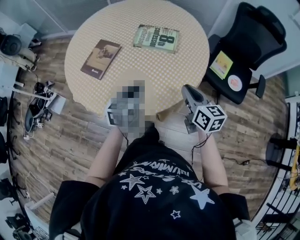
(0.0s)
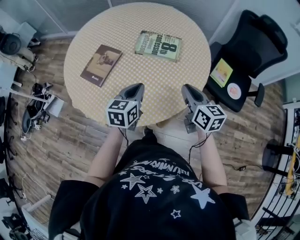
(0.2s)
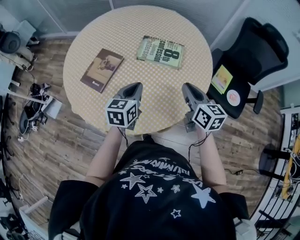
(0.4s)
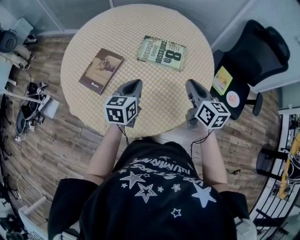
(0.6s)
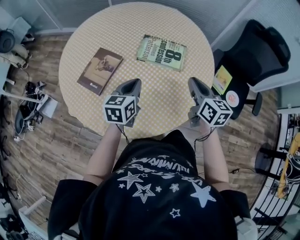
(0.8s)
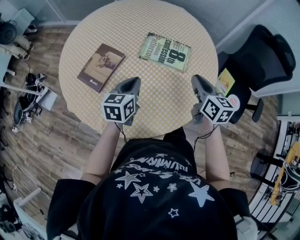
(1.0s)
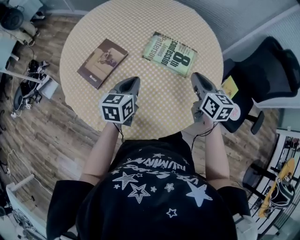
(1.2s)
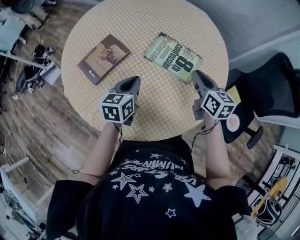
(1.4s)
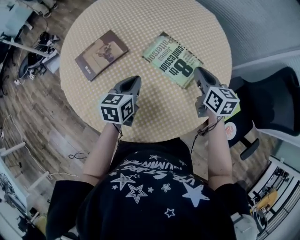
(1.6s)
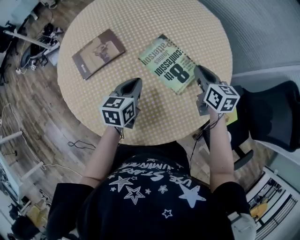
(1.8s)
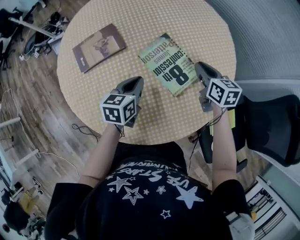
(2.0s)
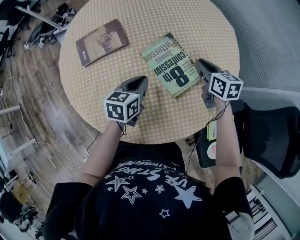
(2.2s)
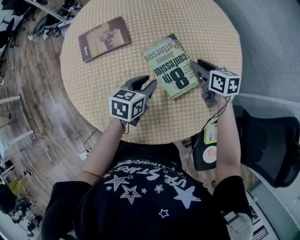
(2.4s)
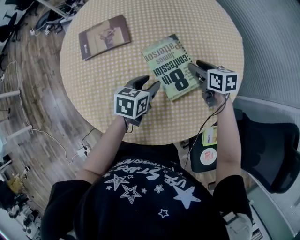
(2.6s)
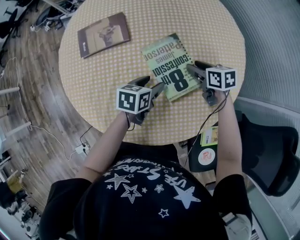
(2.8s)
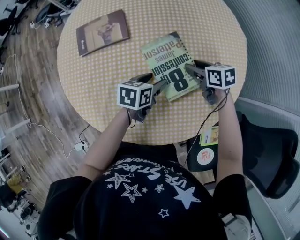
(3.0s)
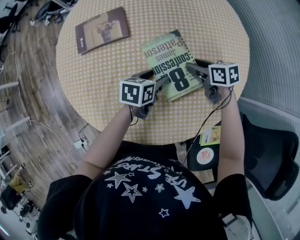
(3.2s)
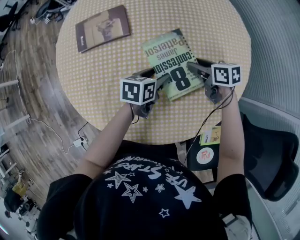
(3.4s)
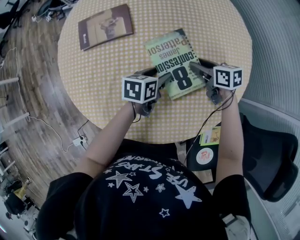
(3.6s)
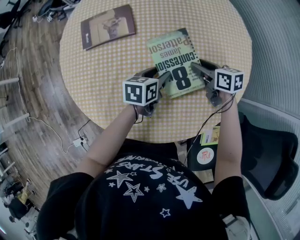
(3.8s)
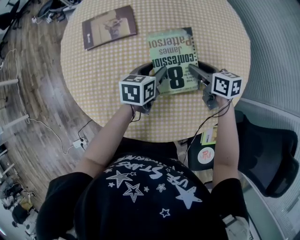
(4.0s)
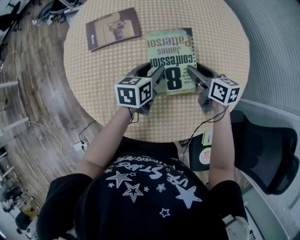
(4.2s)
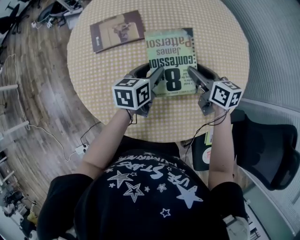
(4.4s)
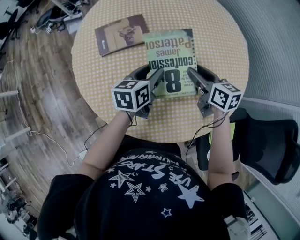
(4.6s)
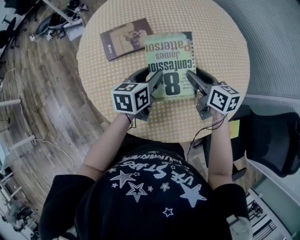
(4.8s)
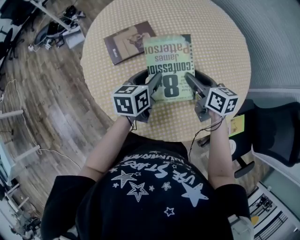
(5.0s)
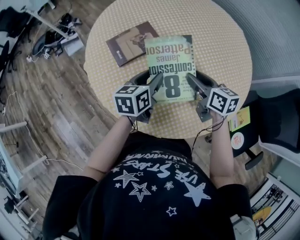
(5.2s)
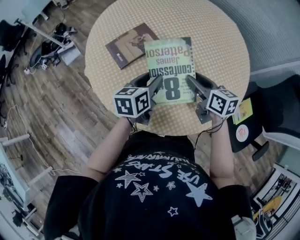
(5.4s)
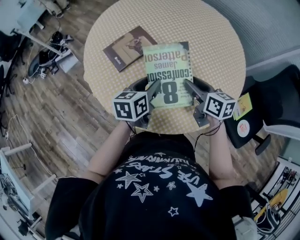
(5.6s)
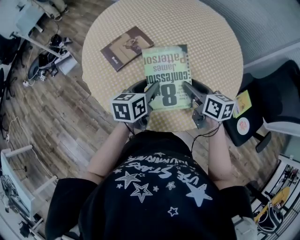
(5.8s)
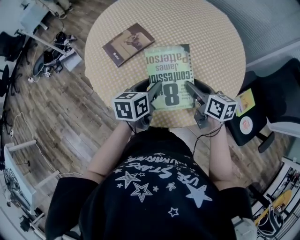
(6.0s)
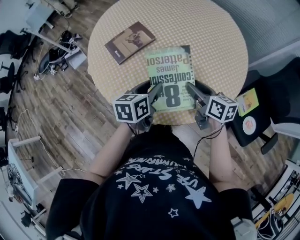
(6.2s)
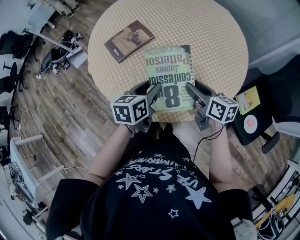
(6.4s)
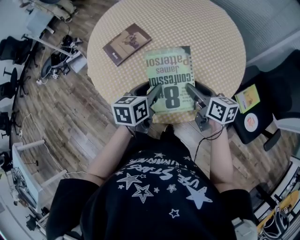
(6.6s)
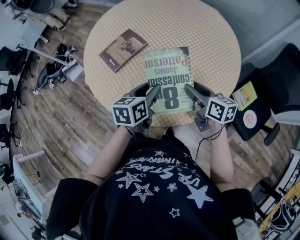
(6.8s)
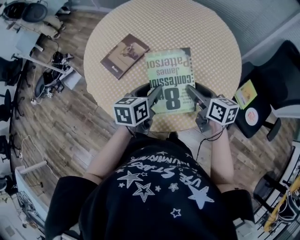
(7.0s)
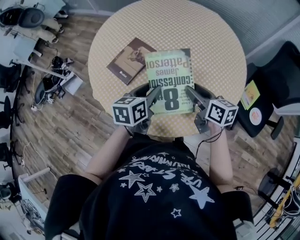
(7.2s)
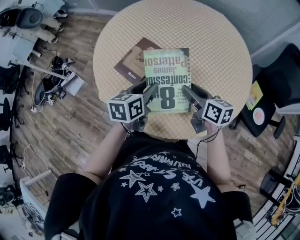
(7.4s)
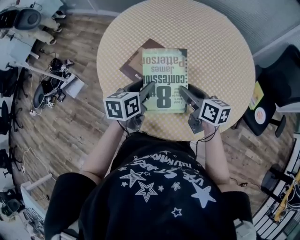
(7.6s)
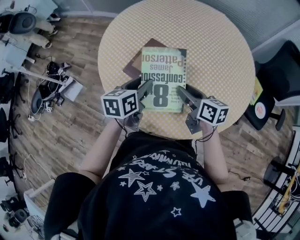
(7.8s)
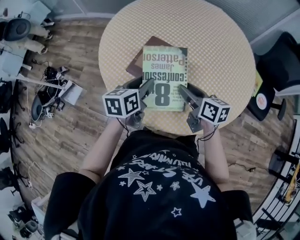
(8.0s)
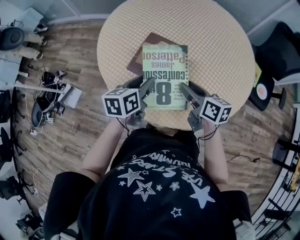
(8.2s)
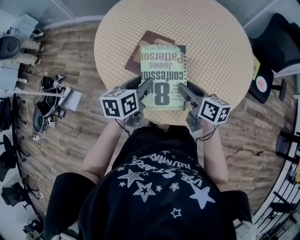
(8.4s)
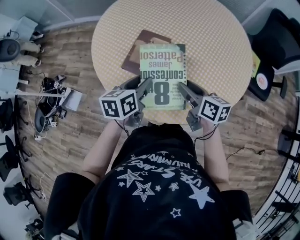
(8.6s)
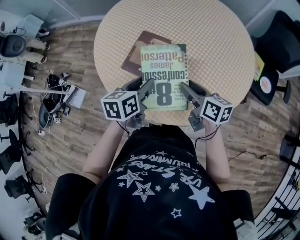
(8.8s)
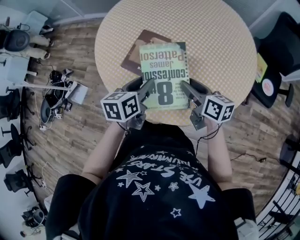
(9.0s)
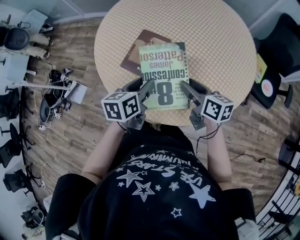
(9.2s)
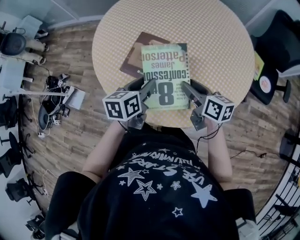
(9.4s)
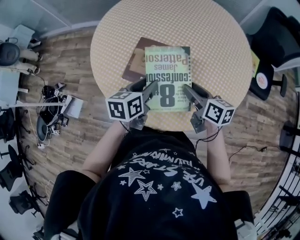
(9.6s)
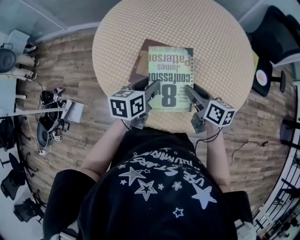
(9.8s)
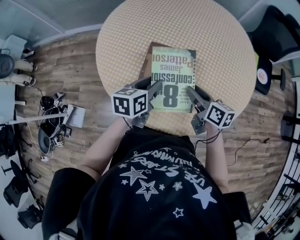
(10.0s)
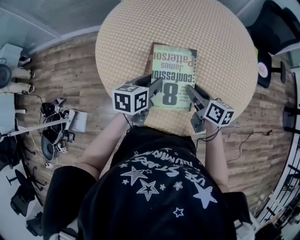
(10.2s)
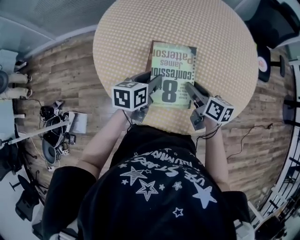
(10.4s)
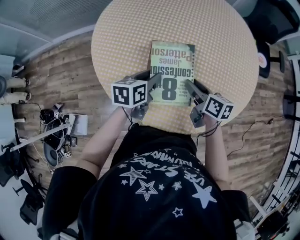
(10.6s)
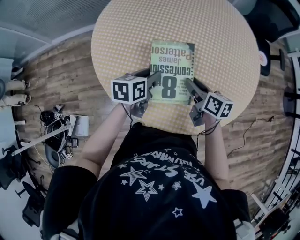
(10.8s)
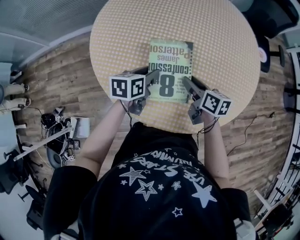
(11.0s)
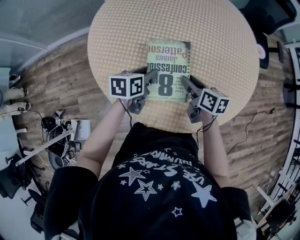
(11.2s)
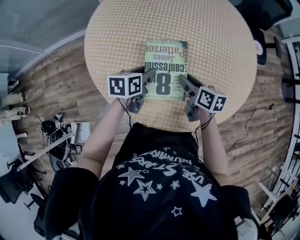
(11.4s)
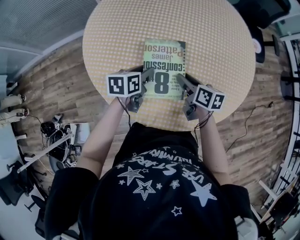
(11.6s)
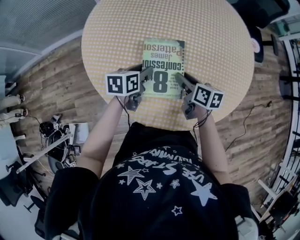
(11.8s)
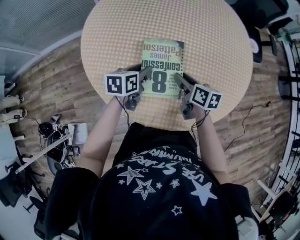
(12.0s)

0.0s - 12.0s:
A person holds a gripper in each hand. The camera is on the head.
0.0s - 1.6s: The left gripper moves forward, some 20 cm, and rotates roughly 30 degrees. Meanwhile the right gripper moves forward, about 30 cm, and changes its angle by about 20 degrees.
1.6s - 3.0s: The left gripper ends up about 15 cm from where it was, rotates approximately 20 degrees, and opens up; the right gripper travels downward by some 15 cm, rotates approximately 50 degrees, and opens.
3.0s - 4.4s: The left gripper goes approximately 10 cm to the left and upward, while the right gripper heads upward and to the left, covering about 10 cm.
4.4s - 6.0s: The right gripper goes some 20 cm backward and to the left, and turns by approximately 30 degrees, while the left gripper moves to the left and backward, approximately 15 cm, and changes its angle by about 20 degrees.
6.0s - 7.6s: The left gripper goes about 20 cm to the left and forward. The right gripper shifts approximately 15 cm to the left.
9.0s - 10.4s: The left gripper changes place by roughly 15 cm, and swivels about 30 degrees. The right gripper ends up some 15 cm from where it was, and swivels approximately 30 degrees.
10.4s - 12.0s: The left gripper goes roughly 5 cm downward and forward. The right gripper changes place by roughly 5 cm.

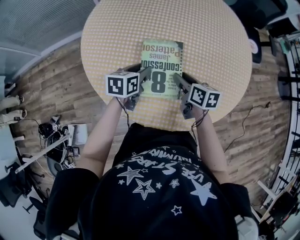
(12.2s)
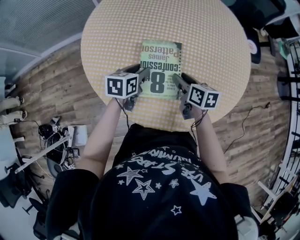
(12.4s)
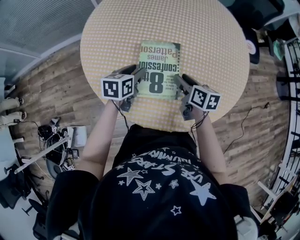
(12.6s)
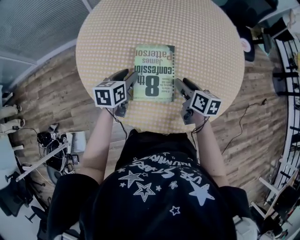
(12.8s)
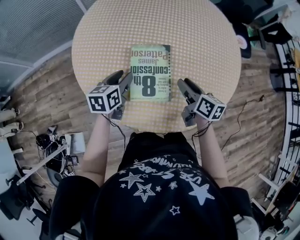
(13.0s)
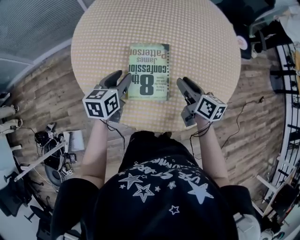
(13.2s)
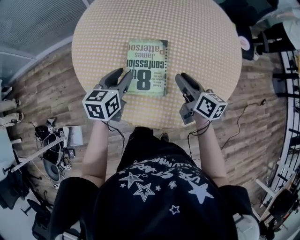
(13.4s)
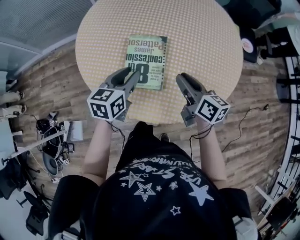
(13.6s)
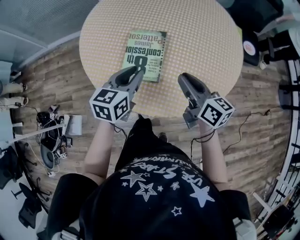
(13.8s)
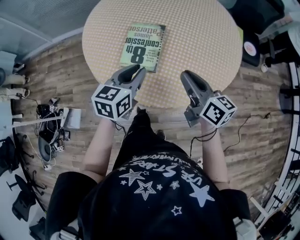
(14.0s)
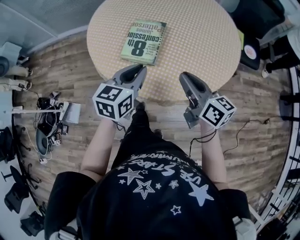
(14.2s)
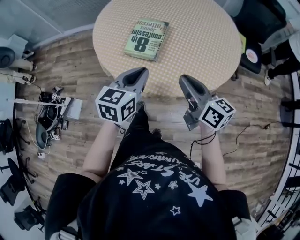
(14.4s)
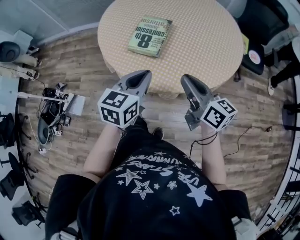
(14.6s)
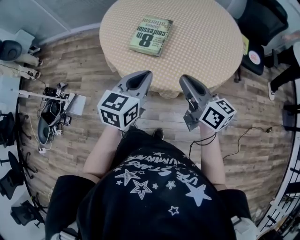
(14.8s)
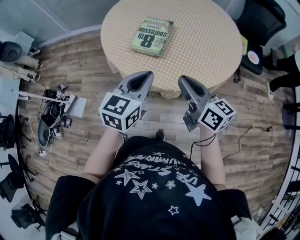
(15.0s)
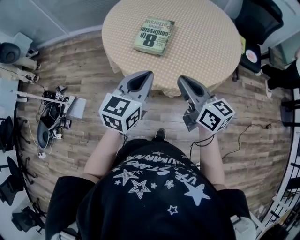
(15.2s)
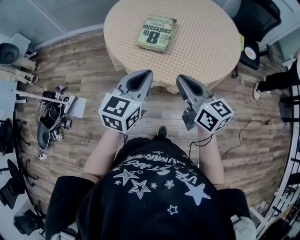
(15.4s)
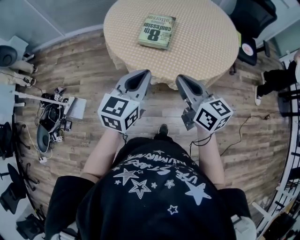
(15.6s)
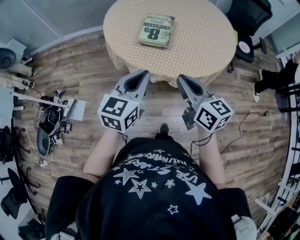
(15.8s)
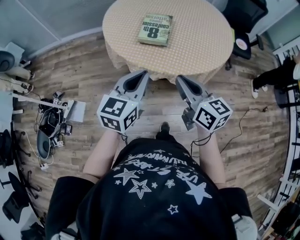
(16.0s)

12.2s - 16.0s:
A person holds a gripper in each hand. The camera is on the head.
12.2s - 13.4s: The right gripper shifts roughly 10 cm upward and to the right; the left gripper moves upward, approximately 10 cm.
13.4s - 14.8s: The right gripper goes roughly 25 cm backward and upward, swivels some 30 degrees, and closes. The left gripper is displaced backward and to the right by approximately 30 cm, and closes its fingers.
14.8s - 16.0s: Both grippers travel together to the left and backward, about 15 cm.

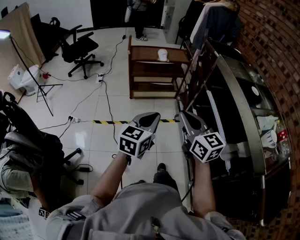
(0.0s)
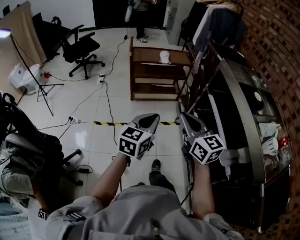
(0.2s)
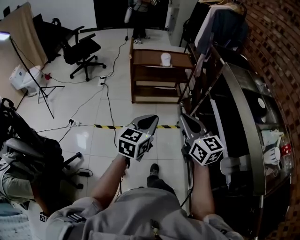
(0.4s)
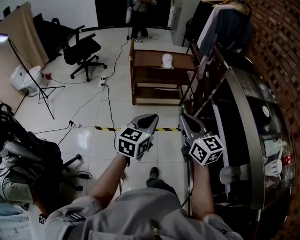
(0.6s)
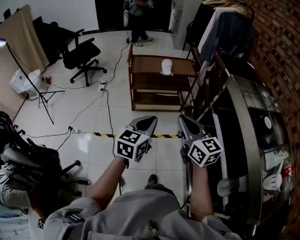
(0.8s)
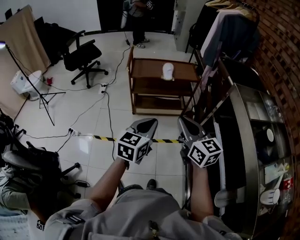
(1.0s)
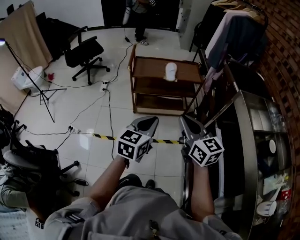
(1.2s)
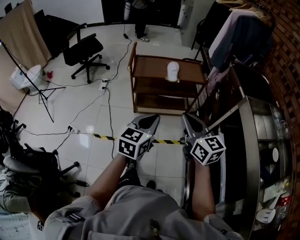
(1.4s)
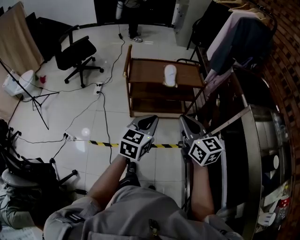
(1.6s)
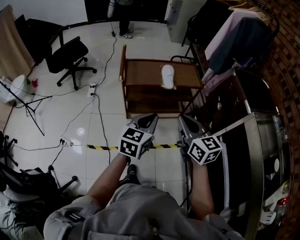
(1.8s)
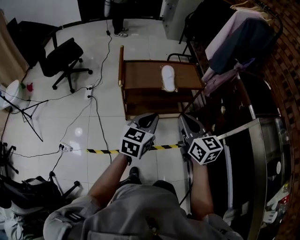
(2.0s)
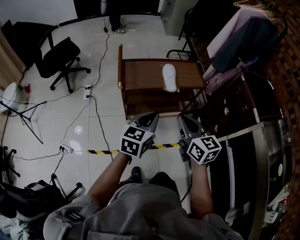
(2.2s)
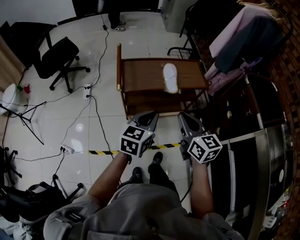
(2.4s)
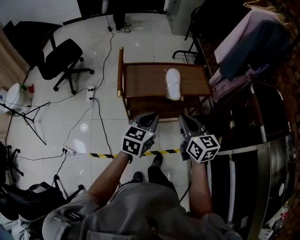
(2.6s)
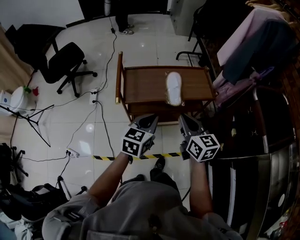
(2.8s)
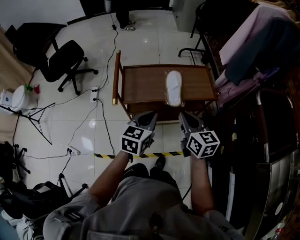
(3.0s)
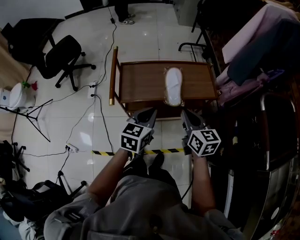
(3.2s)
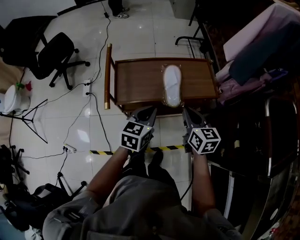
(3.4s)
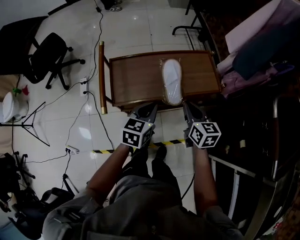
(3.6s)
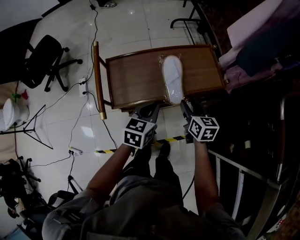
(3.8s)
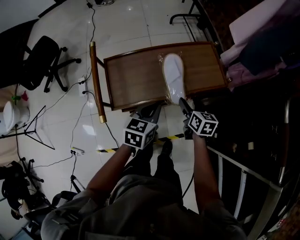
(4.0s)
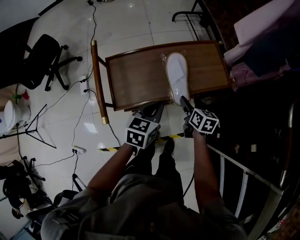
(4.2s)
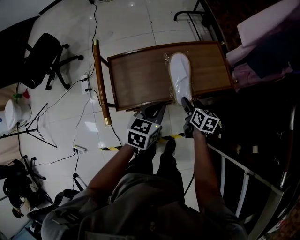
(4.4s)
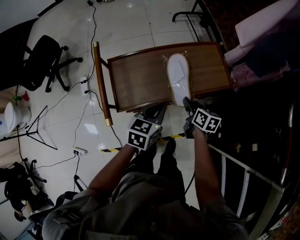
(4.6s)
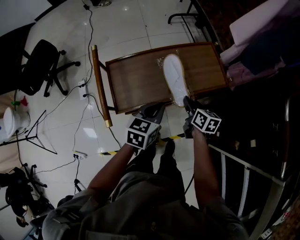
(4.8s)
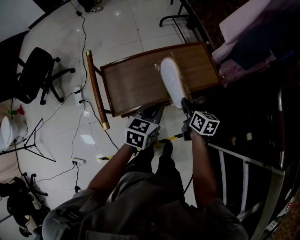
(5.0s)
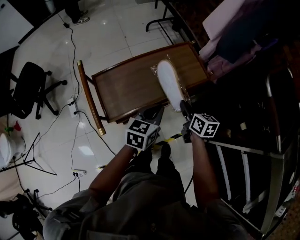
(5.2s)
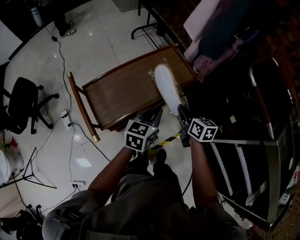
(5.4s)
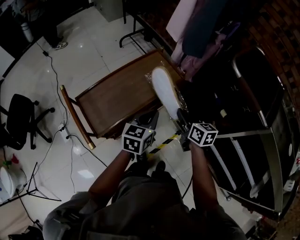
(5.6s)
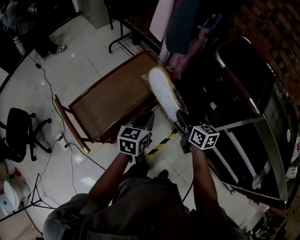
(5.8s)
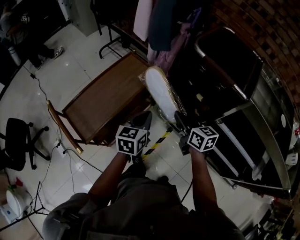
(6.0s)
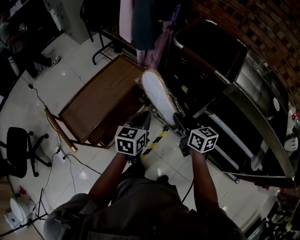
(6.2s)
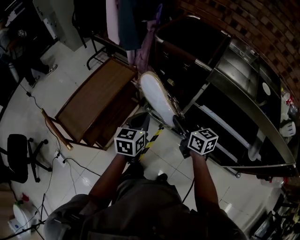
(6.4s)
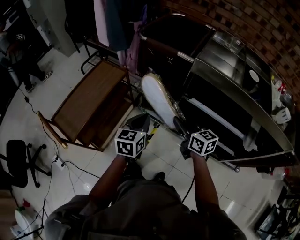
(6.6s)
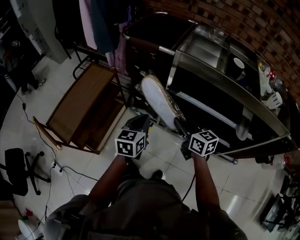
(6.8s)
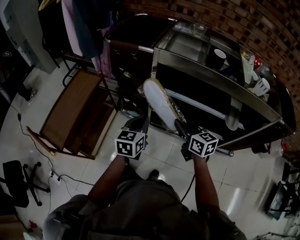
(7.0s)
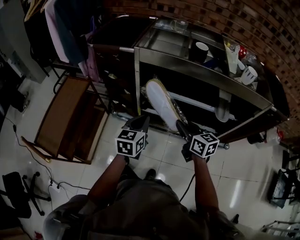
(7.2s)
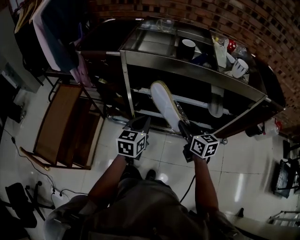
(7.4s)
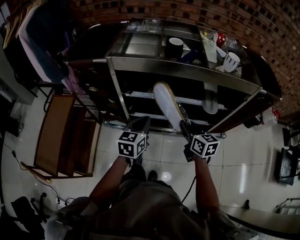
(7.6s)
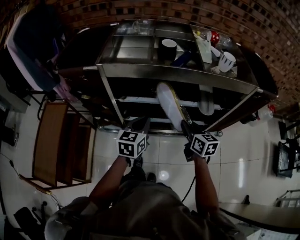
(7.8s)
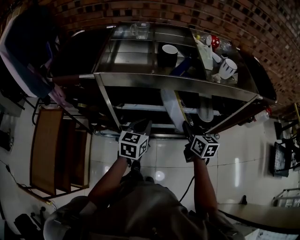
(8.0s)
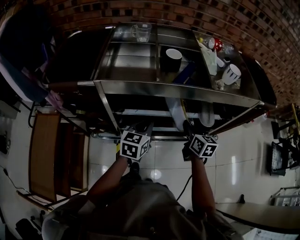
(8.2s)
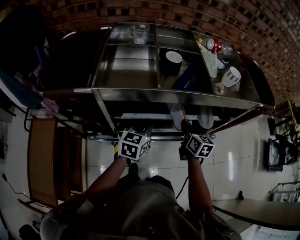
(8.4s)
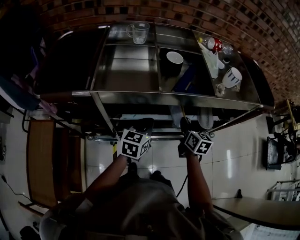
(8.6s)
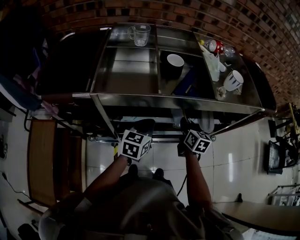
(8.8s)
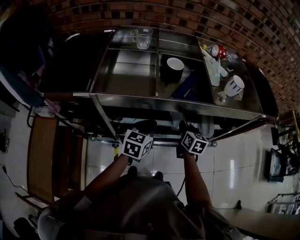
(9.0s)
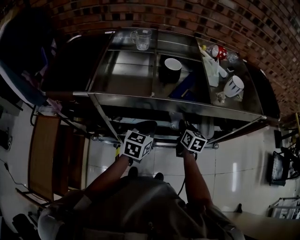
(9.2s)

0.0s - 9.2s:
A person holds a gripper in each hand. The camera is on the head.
0.0s - 1.6s: Both grippers move forward, roughly 40 cm.
1.6s - 3.0s: The two grippers go roughly 30 cm forward.
3.0s - 4.6s: The left gripper moves forward and downward, some 20 cm. Meanwhile the right gripper shifts about 30 cm downward and forward, rotates some 40 degrees, and opens, then closes again.
4.6s - 6.2s: The right gripper moves approximately 40 cm, and swivels approximately 30 degrees; the left gripper changes place by approximately 30 cm, and changes its angle by some 30 degrees.
6.2s - 7.6s: The left gripper changes place by some 40 cm, and turns by roughly 30 degrees. Meanwhile the right gripper changes place by roughly 50 cm, and changes its angle by some 40 degrees.
7.6s - 9.2s: The two grippers go some 20 cm forward. The right gripper changes its angle by about 20 degrees.
